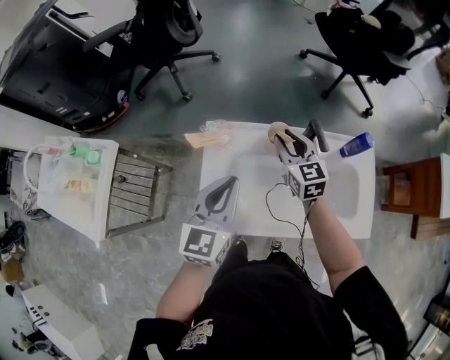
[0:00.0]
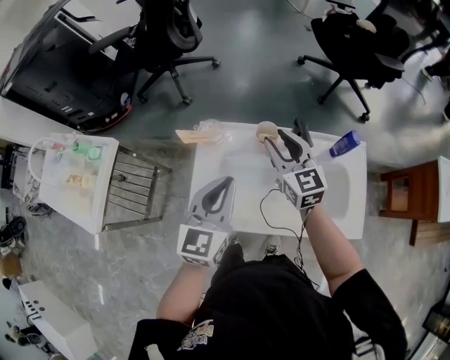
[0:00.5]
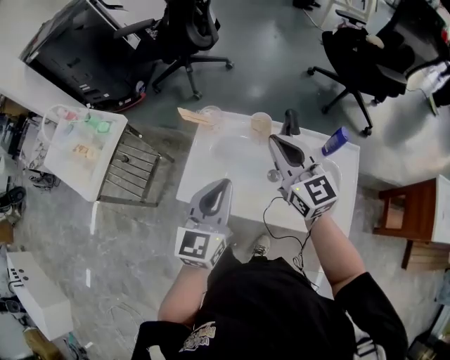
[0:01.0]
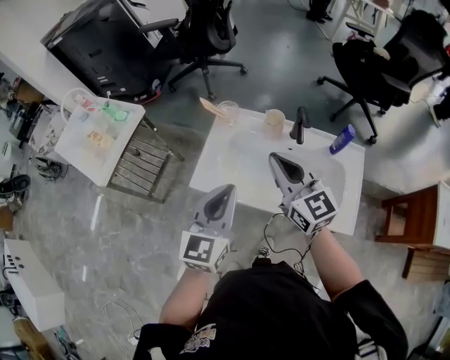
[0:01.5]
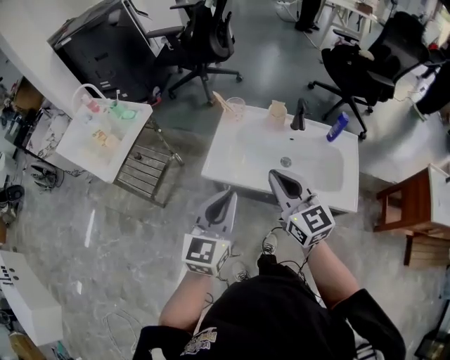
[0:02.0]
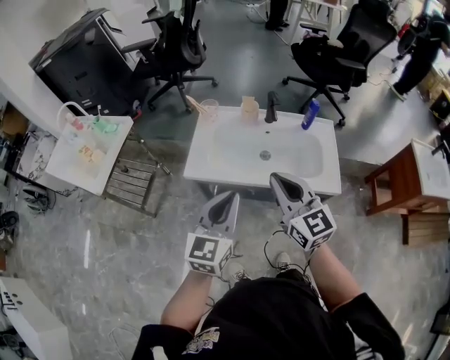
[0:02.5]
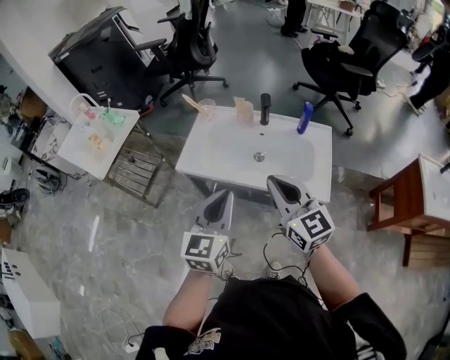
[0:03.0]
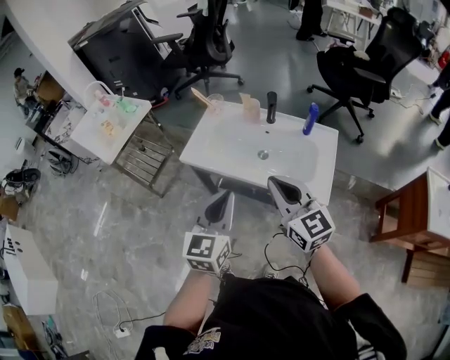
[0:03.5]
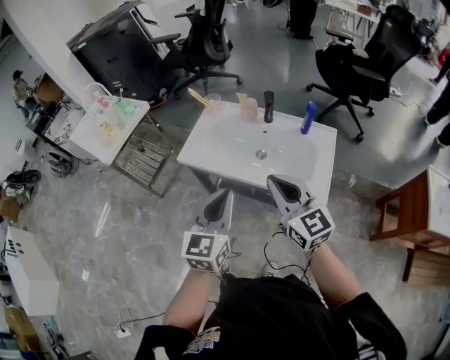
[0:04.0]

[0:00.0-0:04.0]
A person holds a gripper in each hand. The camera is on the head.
0:00.0 to 0:02.0: The left gripper heads backward, covering roughly 30 cm, while the right gripper heads backward and upward, covering about 40 cm, swivels about 30 degrees, and closes.
0:02.0 to 0:04.0: Both grippers travel together to the right and backward, approximately 20 cm.

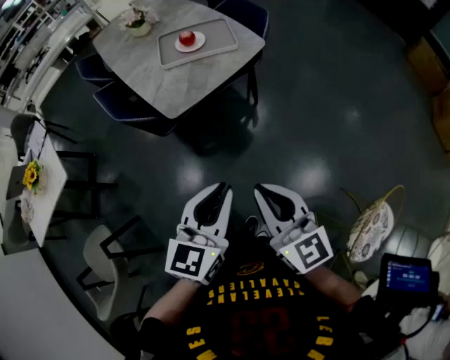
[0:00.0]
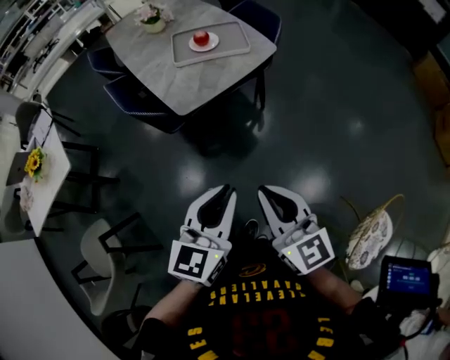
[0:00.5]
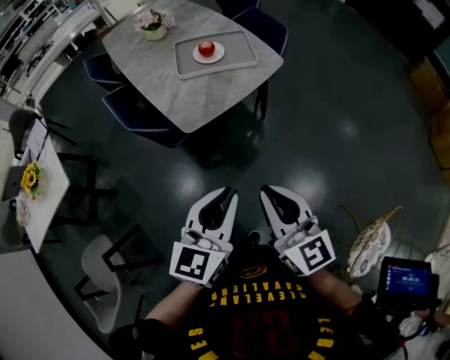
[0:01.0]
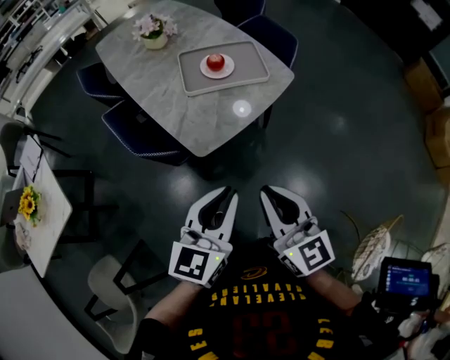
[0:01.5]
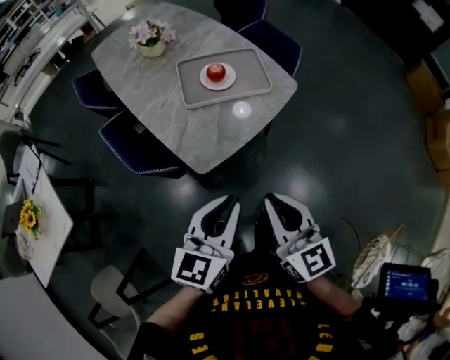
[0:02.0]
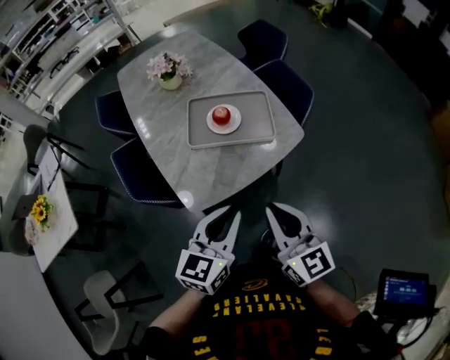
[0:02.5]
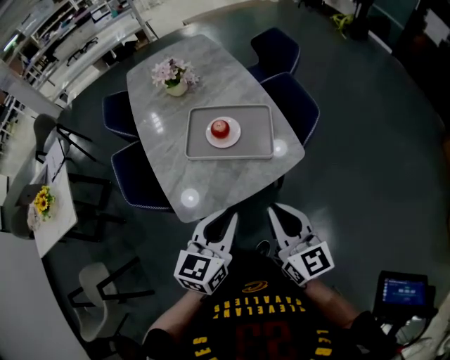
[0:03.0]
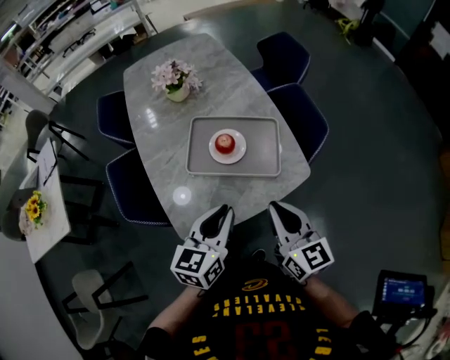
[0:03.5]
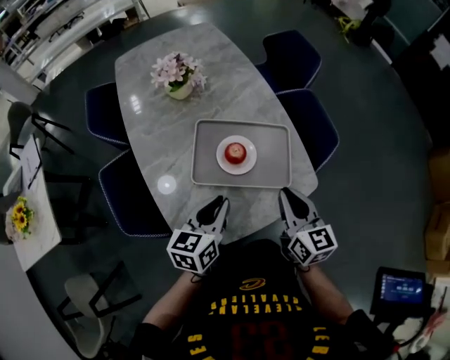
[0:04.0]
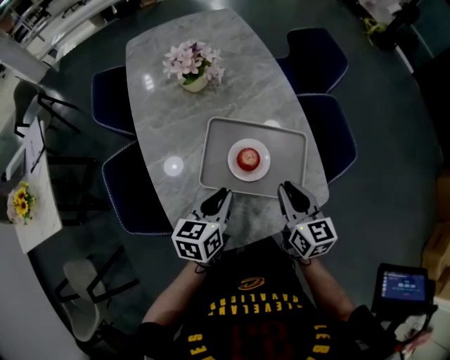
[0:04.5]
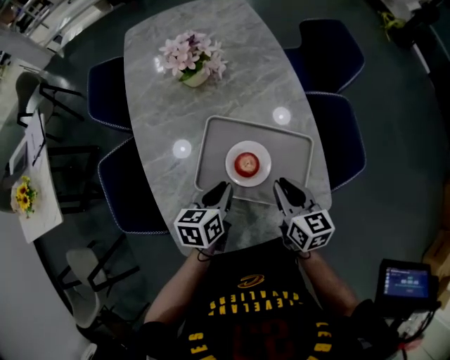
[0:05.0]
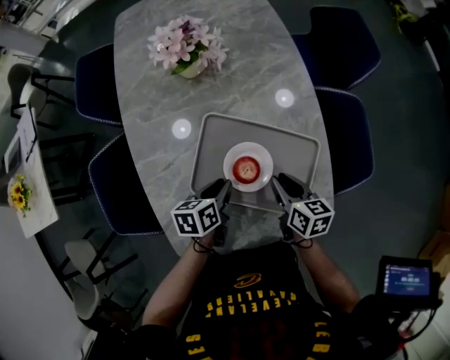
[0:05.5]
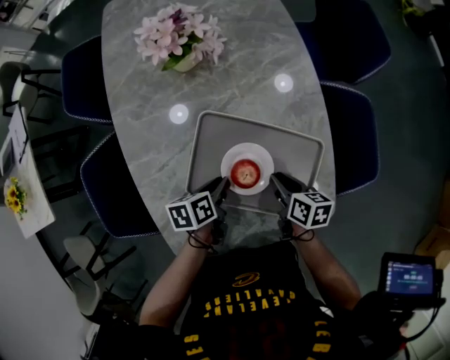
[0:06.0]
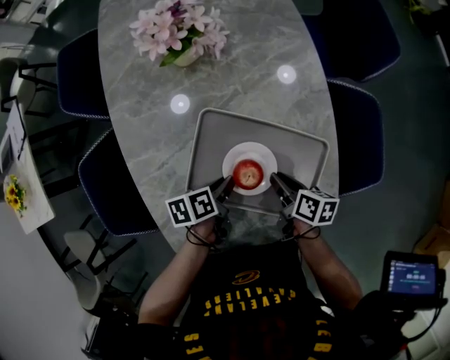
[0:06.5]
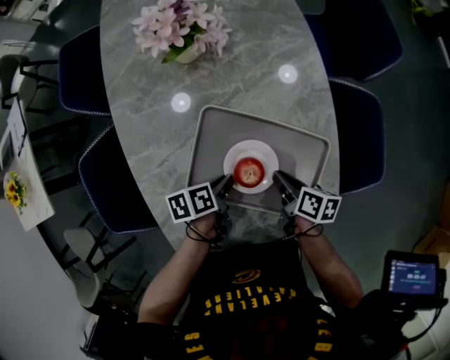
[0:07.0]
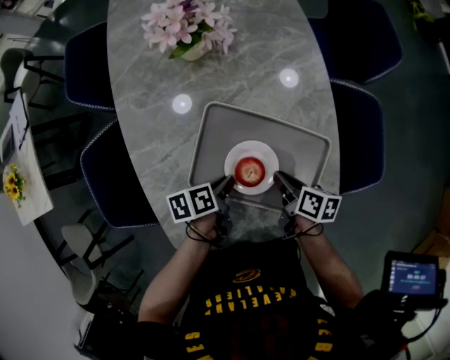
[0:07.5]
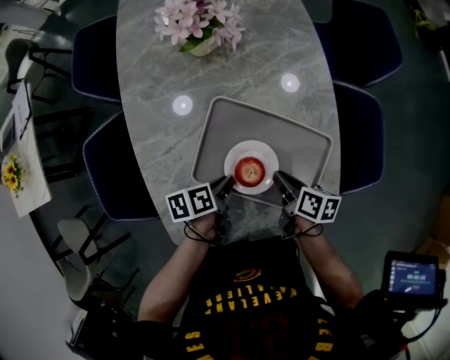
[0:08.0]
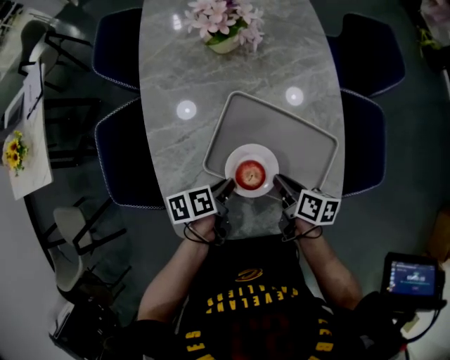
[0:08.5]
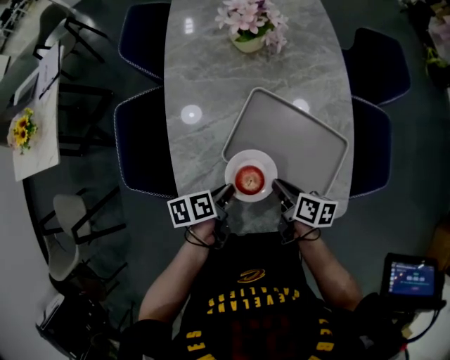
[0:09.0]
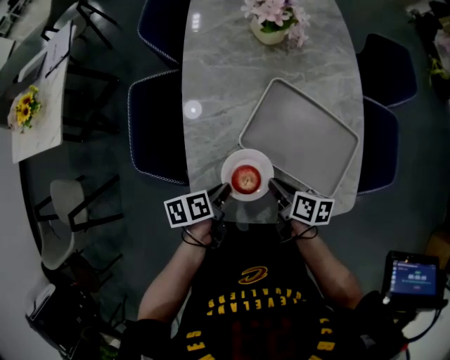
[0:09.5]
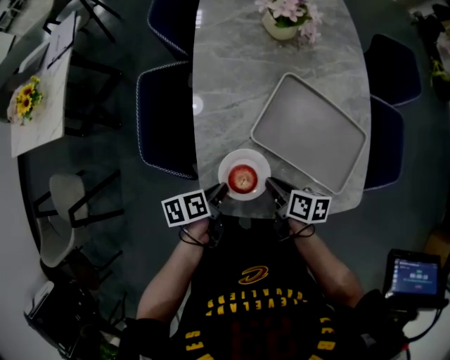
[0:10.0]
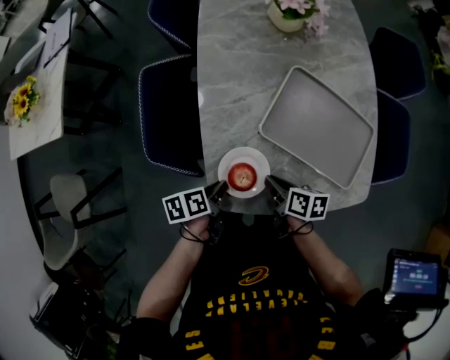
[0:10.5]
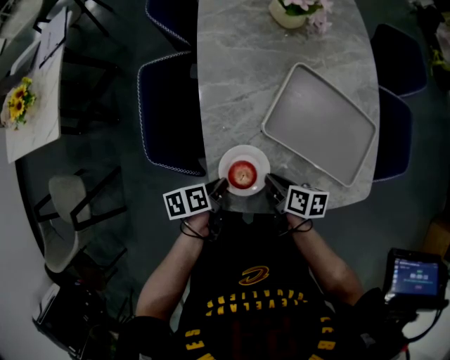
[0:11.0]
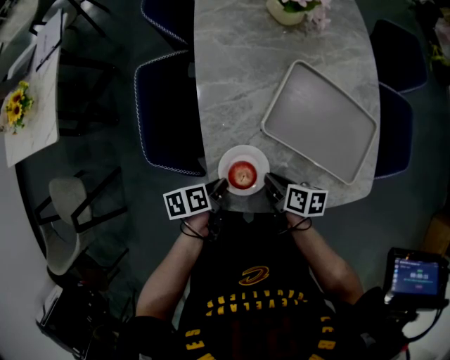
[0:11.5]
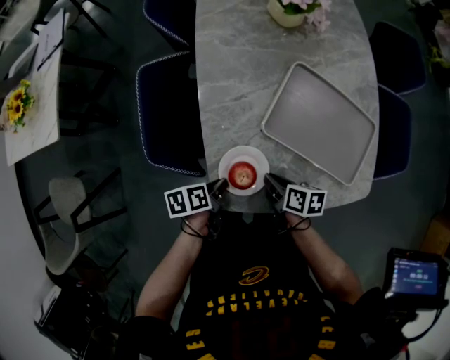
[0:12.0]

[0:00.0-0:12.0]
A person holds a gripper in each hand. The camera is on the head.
0:00.0 to 0:02.0: Both grippers travel together forward and to the left, some 25 cm.
0:02.0 to 0:04.0: Both grippers travel together forward, approximately 35 cm. The left gripper rotates approximately 20 degrees.
0:04.0 to 0:06.0: Both grippers travel together downward and forward, about 25 cm. The left gripper swivels approximately 50 degrees, while the right gripper angles its fingers downward, by approximately 30 degrees.
0:06.0 to 0:08.0: The grippers make only small movements.
0:08.0 to 0:10.0: The grippers both shift to the left and backward by some 25 cm.
0:10.0 to 0:12.0: The grippers stay close to where they were, moving slightly.

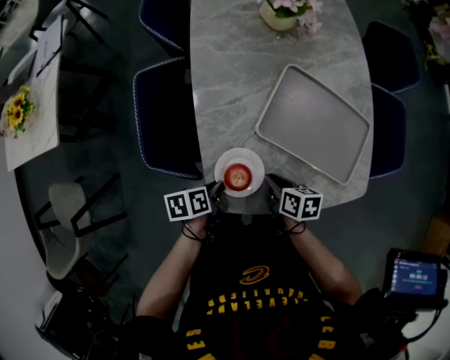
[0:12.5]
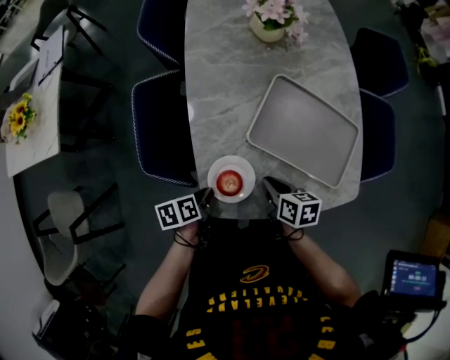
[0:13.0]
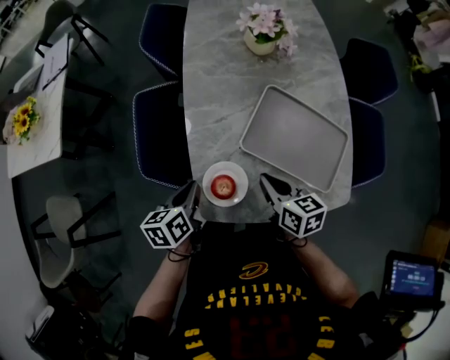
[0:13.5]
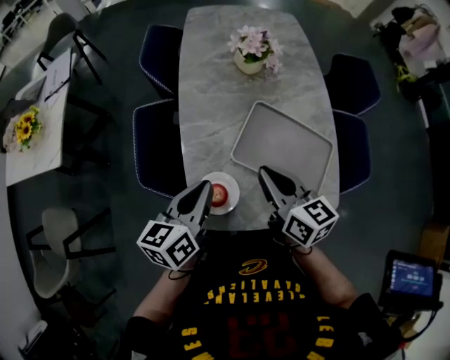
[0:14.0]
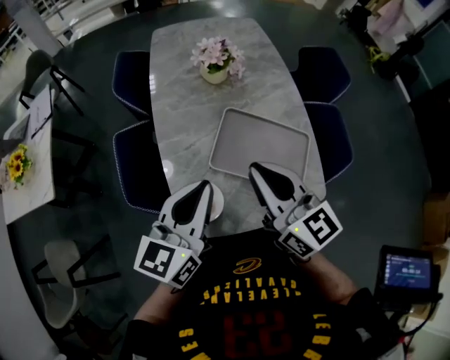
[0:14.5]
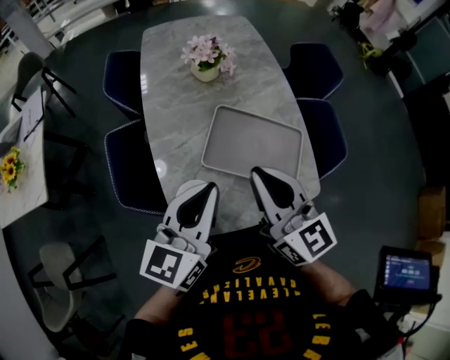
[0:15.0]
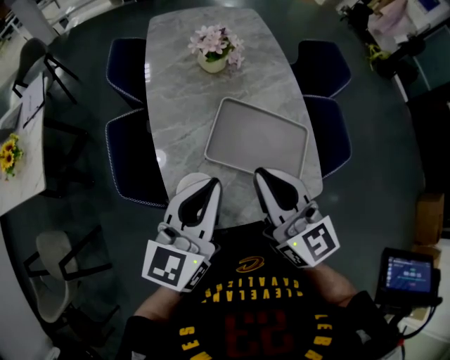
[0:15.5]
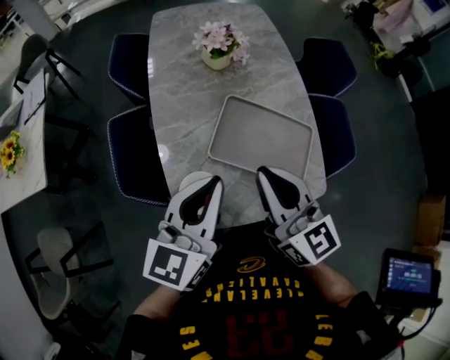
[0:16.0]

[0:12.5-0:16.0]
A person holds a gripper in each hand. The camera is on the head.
0:12.5 to 0:14.5: Both grippers travel together upward, roughly 40 cm. The right gripper angles its fingers upward, by roughly 50 degrees; the left gripper points its fingers some 50 degrees further upward.
0:14.5 to 0:16.0: There are only small adjustments of the grippers.

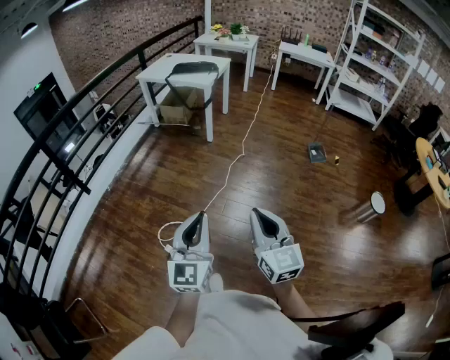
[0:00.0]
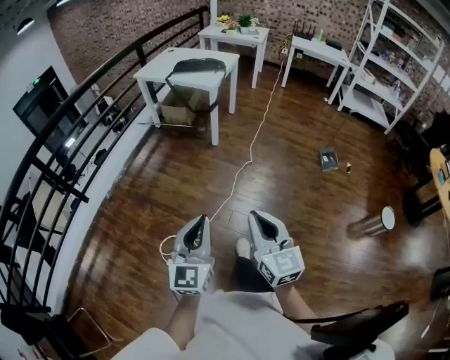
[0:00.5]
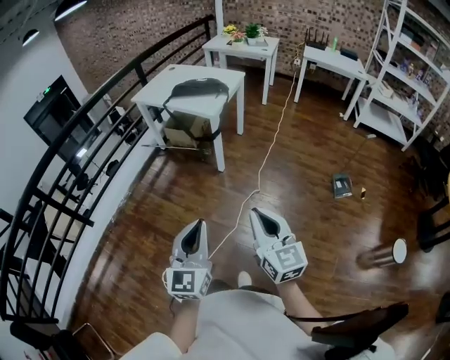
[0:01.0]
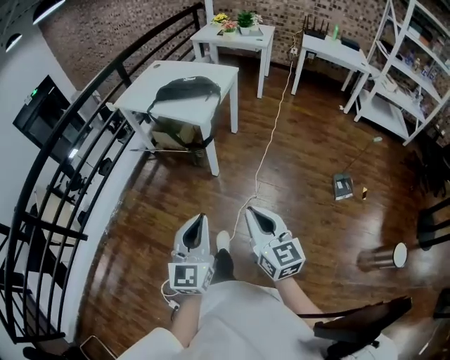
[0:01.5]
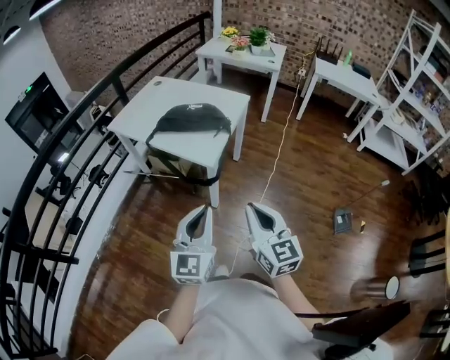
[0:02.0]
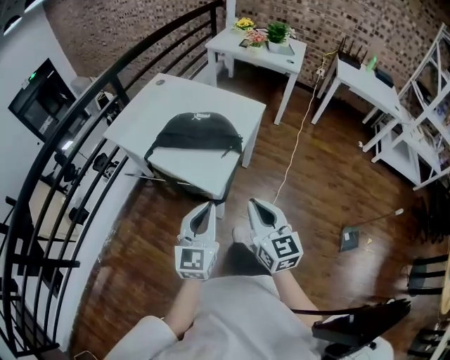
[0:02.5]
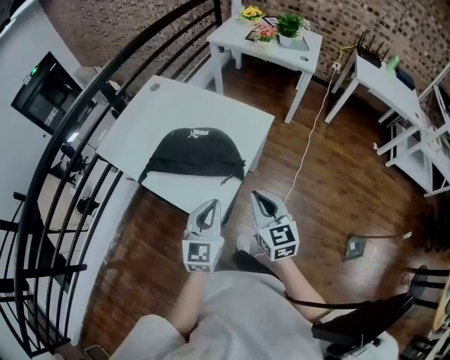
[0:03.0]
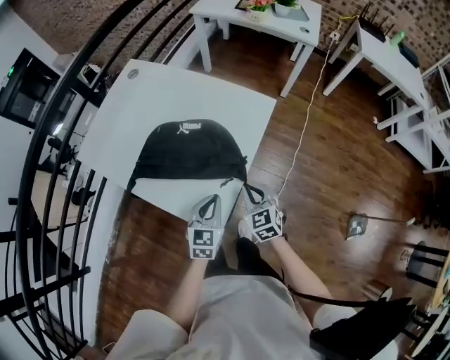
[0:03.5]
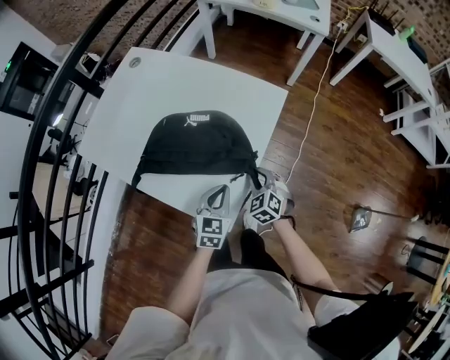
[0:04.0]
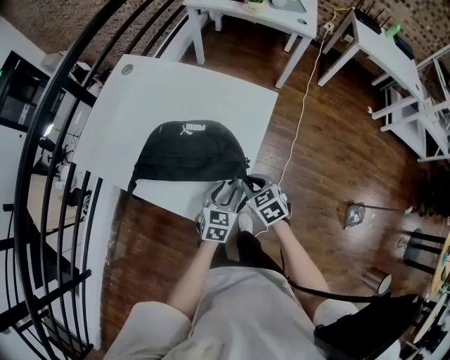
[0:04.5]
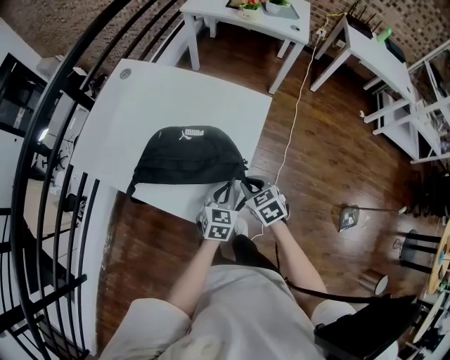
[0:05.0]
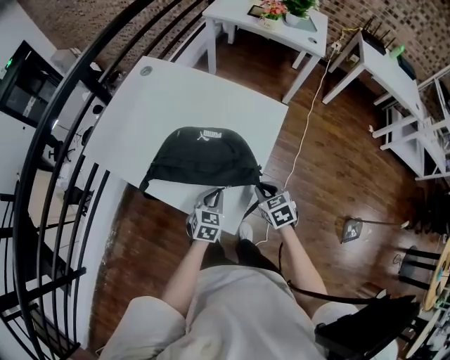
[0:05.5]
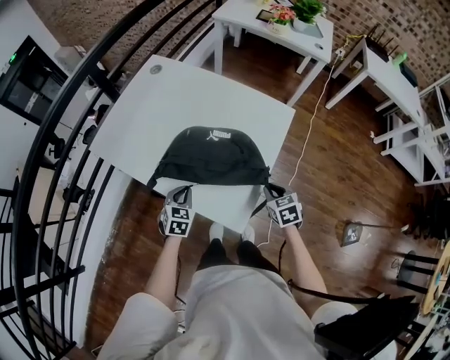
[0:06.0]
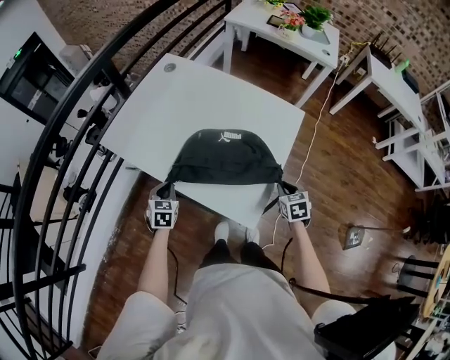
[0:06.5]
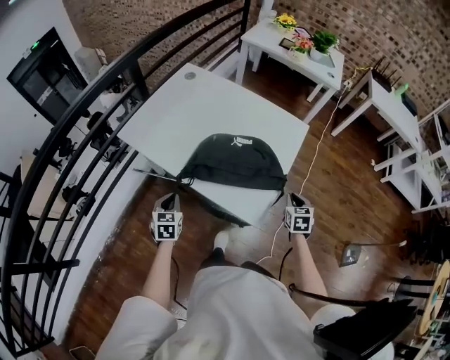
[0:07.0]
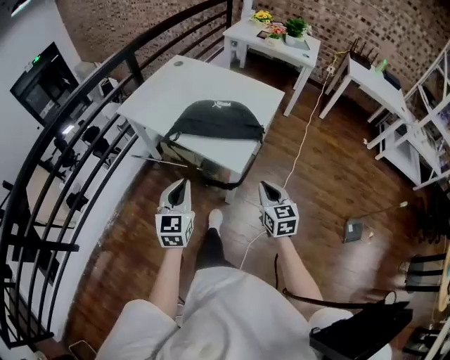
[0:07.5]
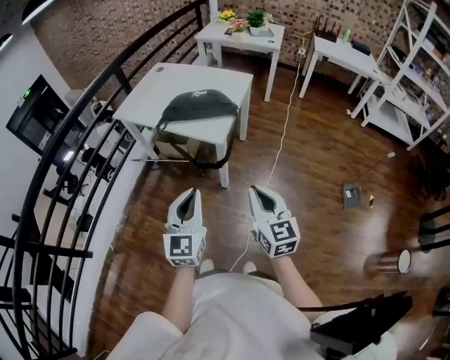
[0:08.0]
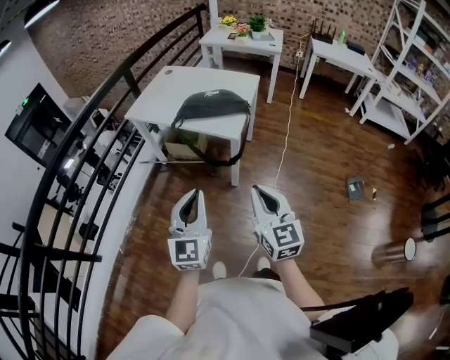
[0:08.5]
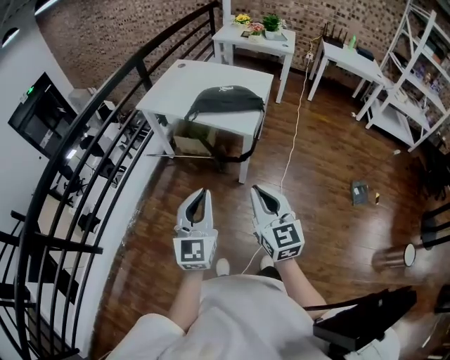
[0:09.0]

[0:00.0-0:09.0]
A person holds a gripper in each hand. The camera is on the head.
0:00.0 to 0:02.0: The two grippers travel together, forward, roughly 90 cm.
0:02.0 to 0:04.5: The two grippers travel together, forward, roughly 50 cm. The two grippers go about 30 cm downward. The right gripper tips its fingers downward by roughly 40 degrees. Meanwhile the left gripper angles its fingers downward, by some 40 degrees, and opens up.
0:04.5 to 0:07.0: The right gripper changes place by some 5 cm, and changes its angle by about 30 degrees, while the left gripper travels to the left by roughly 35 cm, changes its angle by about 30 degrees, and closes.
0:07.0 to 0:09.0: Both grippers are carried backward, approximately 50 cm. The grippers both shift upward by approximately 25 cm. The right gripper angles its fingers upward, by about 40 degrees; the left gripper points its fingers approximately 40 degrees further upward.
